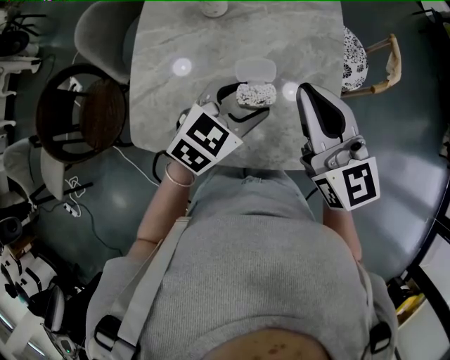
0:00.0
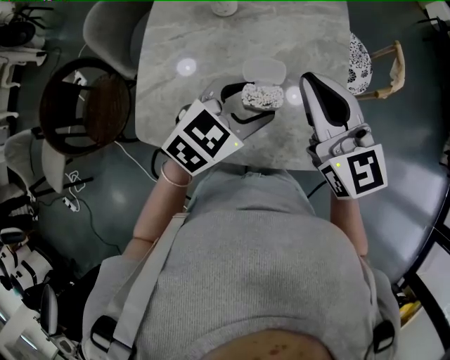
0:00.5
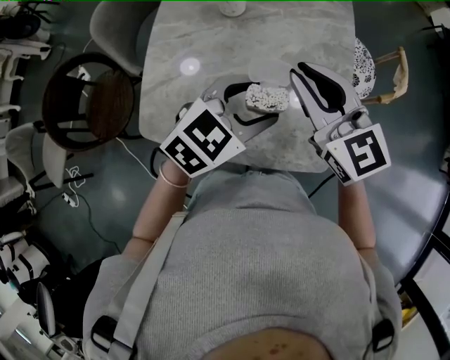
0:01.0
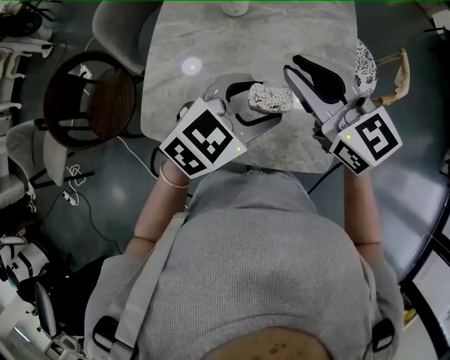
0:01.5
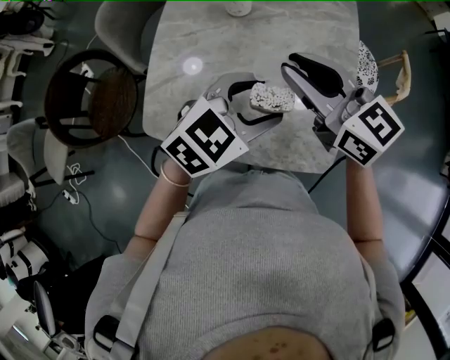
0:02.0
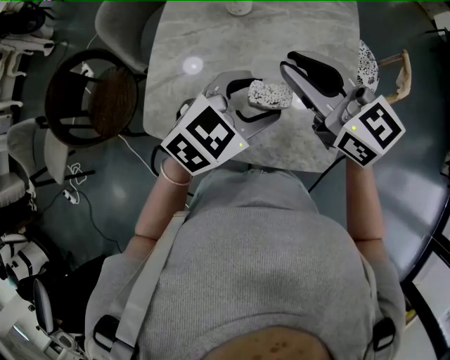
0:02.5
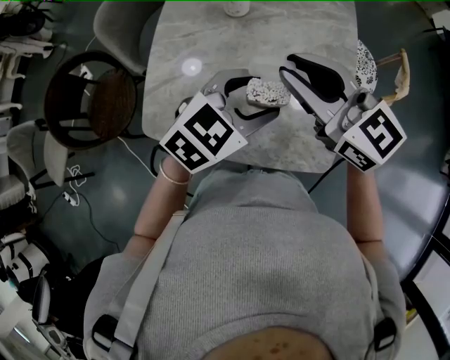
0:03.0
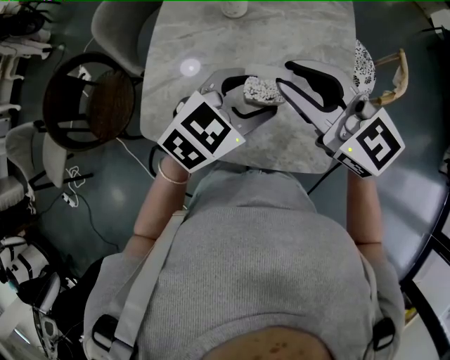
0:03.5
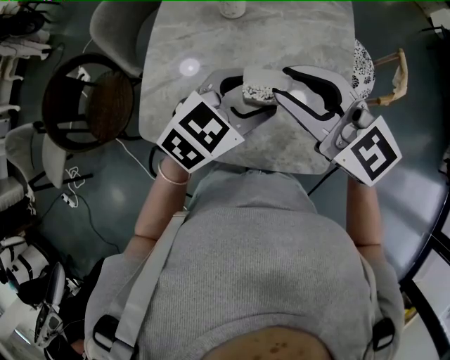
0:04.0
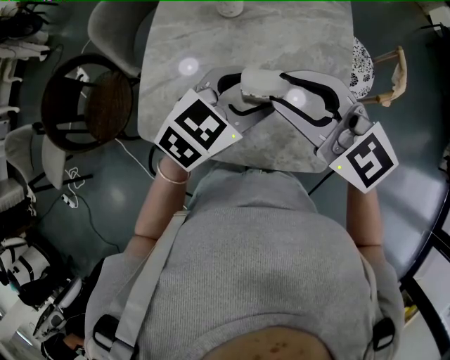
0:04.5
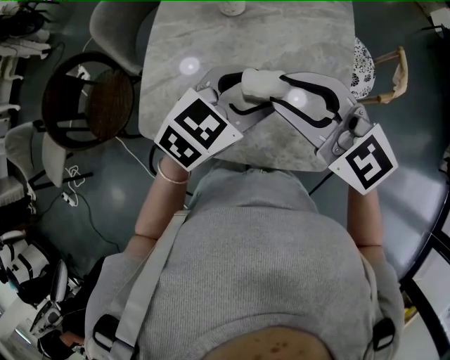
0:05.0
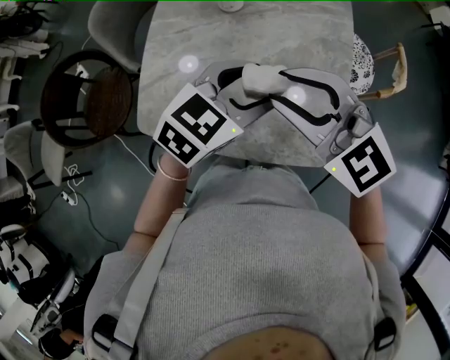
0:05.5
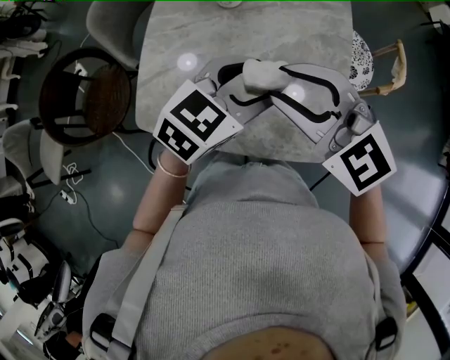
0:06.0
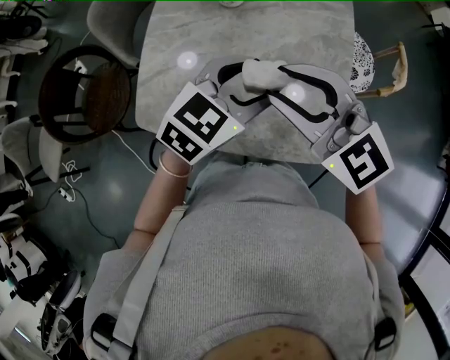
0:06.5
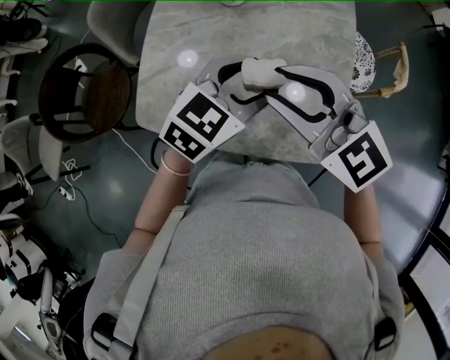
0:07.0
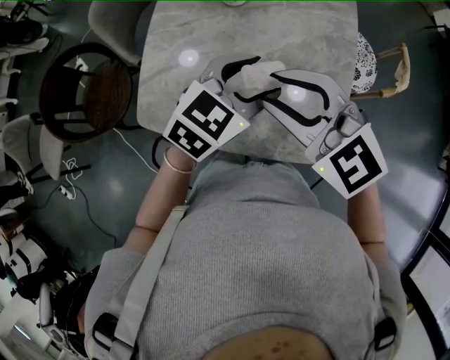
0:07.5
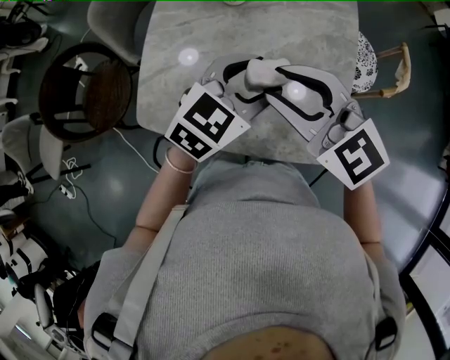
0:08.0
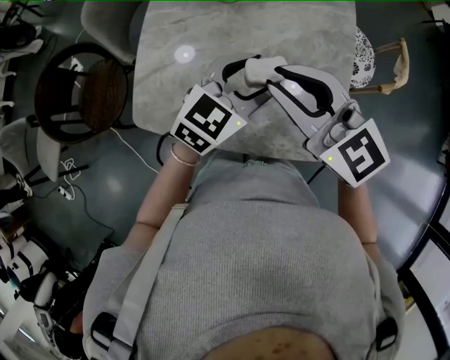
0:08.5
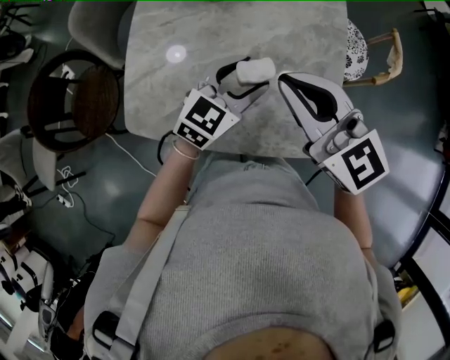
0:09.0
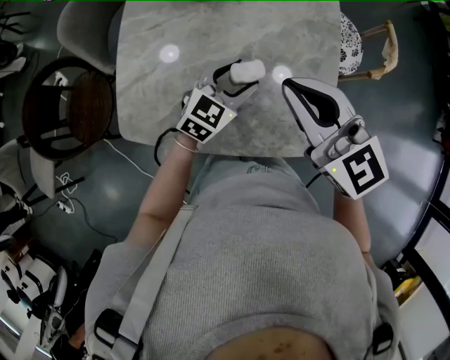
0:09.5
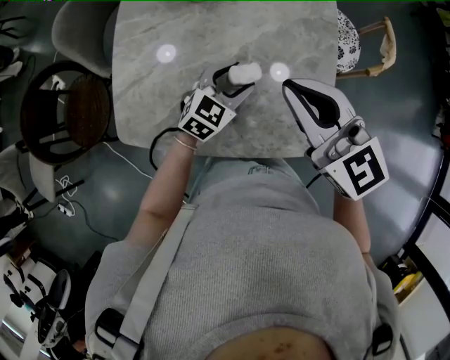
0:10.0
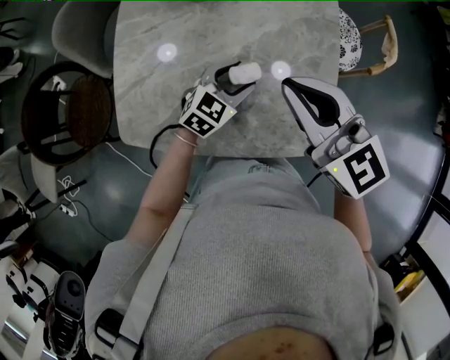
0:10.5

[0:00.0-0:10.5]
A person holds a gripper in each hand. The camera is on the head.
0:00.0 to 0:02.0: The left gripper goes about 5 cm upward. Meanwhile the right gripper shifts about 5 cm to the left, and swivels about 30 degrees.
0:02.0 to 0:04.0: The right gripper shifts about 5 cm backward.
0:04.0 to 0:08.5: The grippers stay close to where they were, moving slightly.
0:08.5 to 0:10.5: The left gripper shifts approximately 15 cm downward. The right gripper is displaced to the right by some 5 cm.

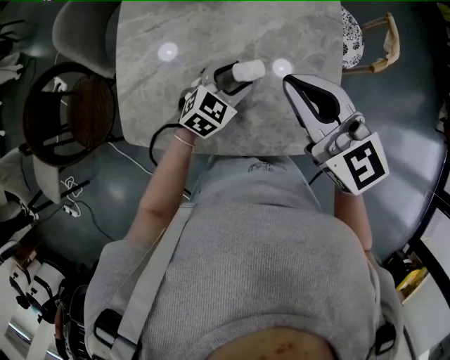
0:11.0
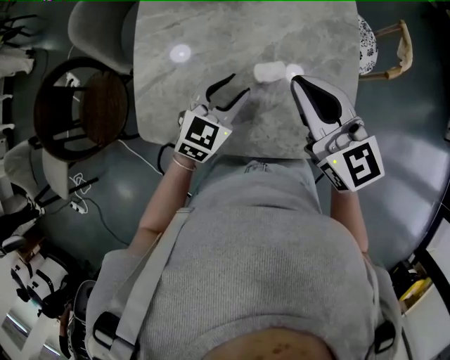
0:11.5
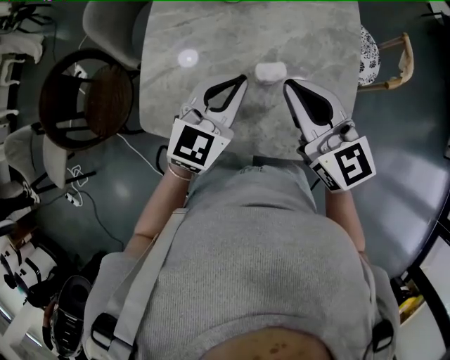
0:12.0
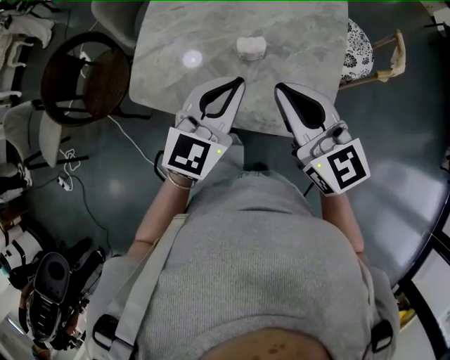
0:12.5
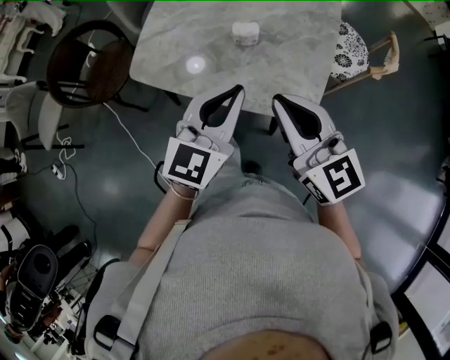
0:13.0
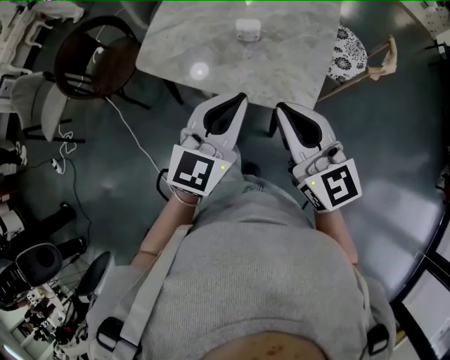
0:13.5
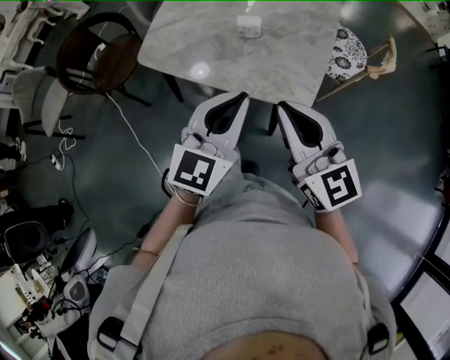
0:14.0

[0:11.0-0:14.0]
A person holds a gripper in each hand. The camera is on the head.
0:11.0 to 0:12.5: The right gripper shifts about 10 cm backward, while the left gripper heads upward and backward, covering approximately 20 cm, changes its angle by roughly 30 degrees, and closes.
0:12.5 to 0:14.0: The grippers both shift backward by some 15 cm.

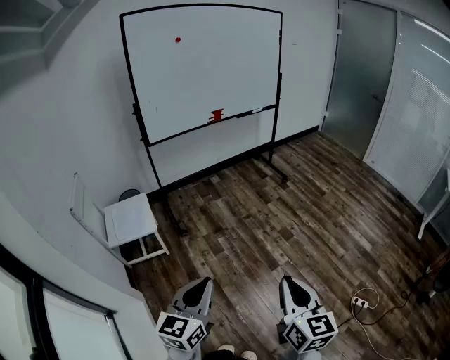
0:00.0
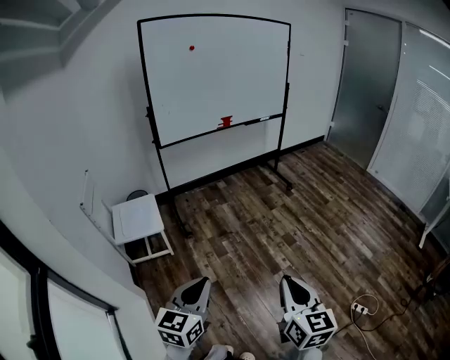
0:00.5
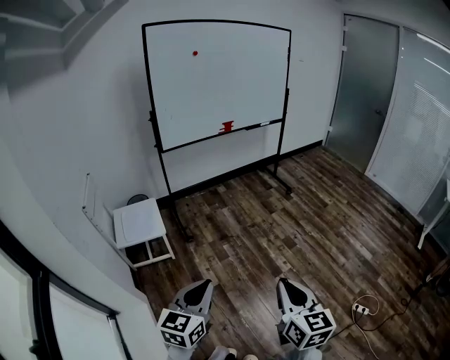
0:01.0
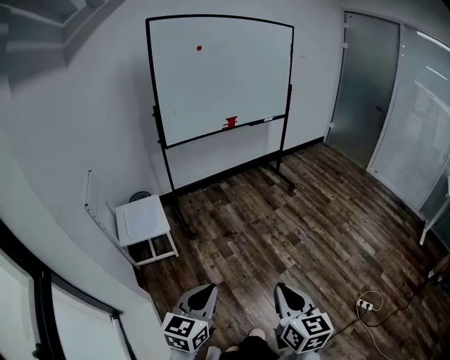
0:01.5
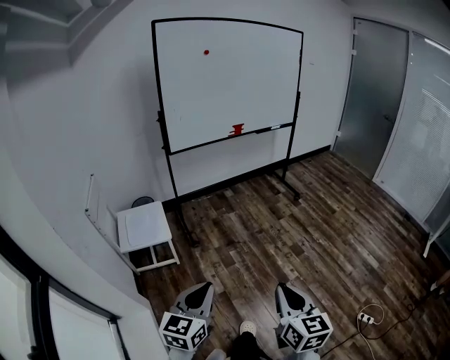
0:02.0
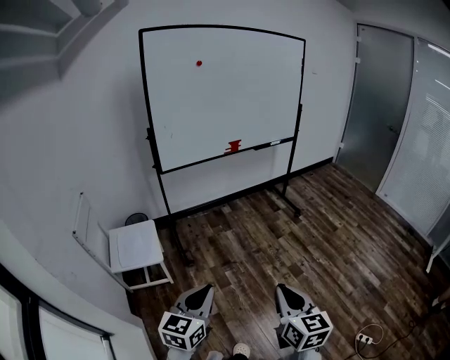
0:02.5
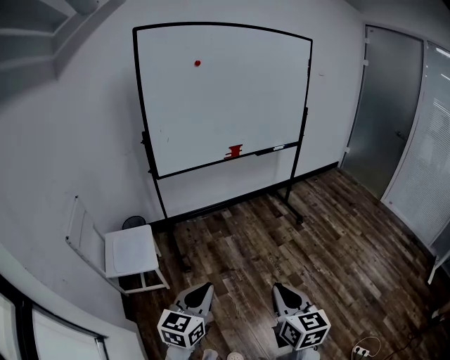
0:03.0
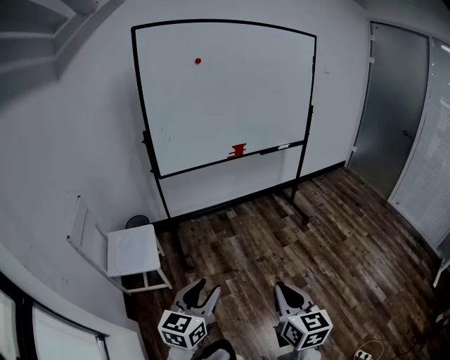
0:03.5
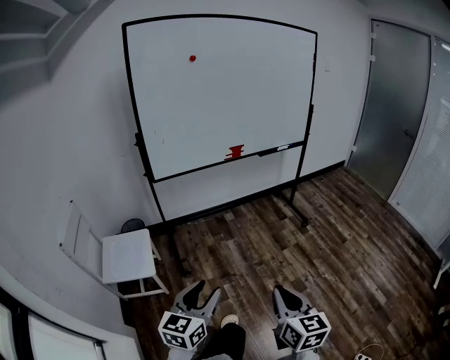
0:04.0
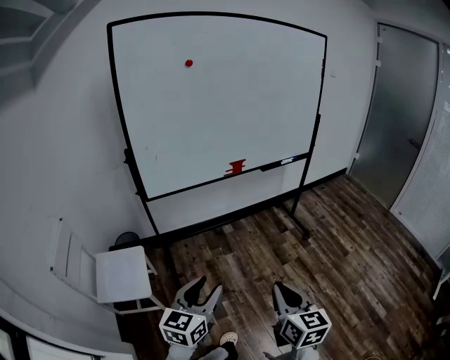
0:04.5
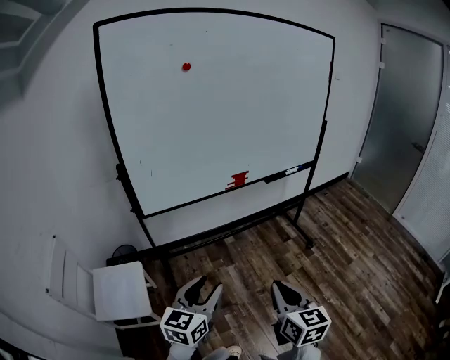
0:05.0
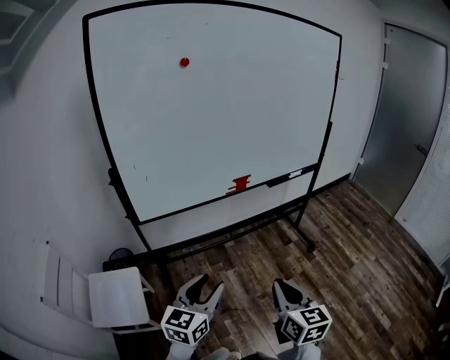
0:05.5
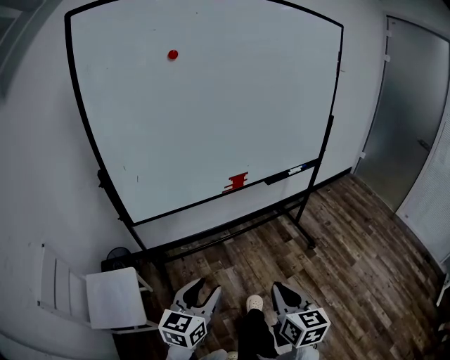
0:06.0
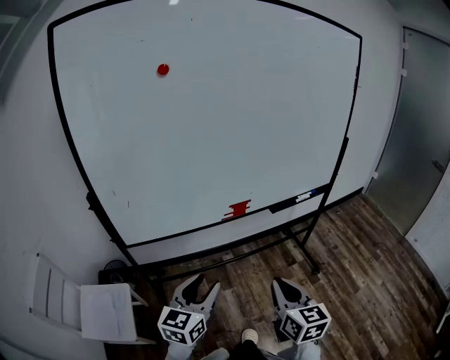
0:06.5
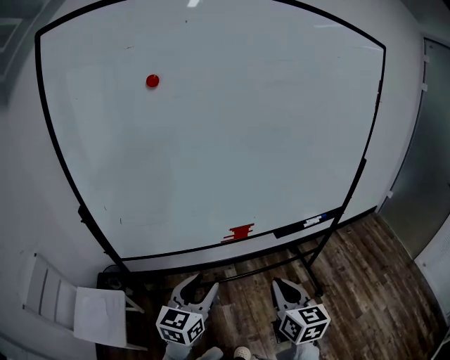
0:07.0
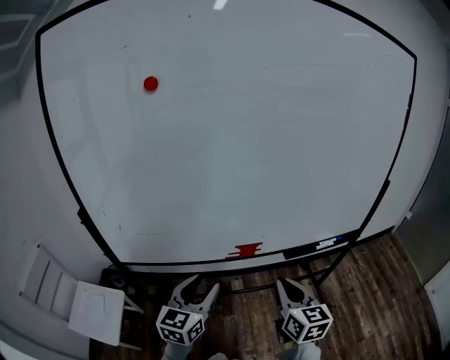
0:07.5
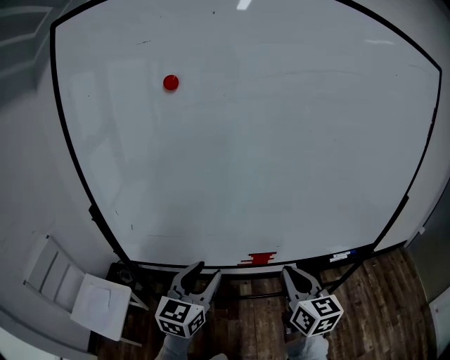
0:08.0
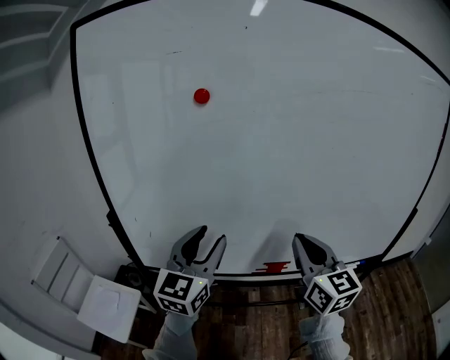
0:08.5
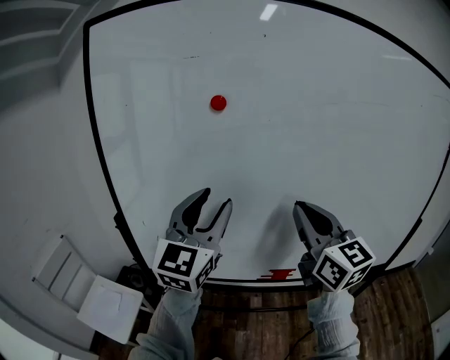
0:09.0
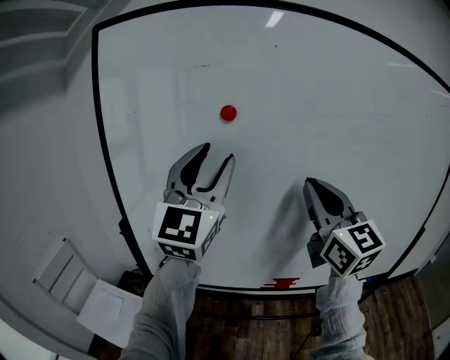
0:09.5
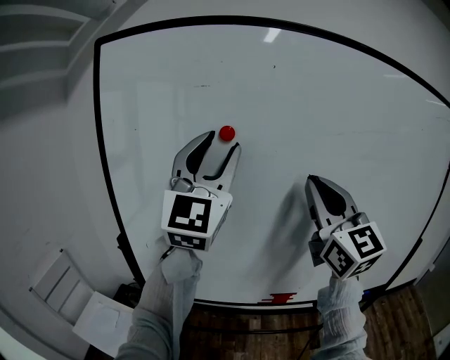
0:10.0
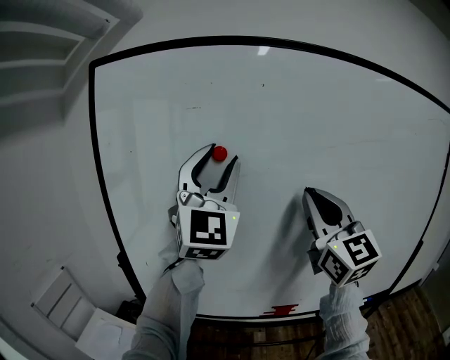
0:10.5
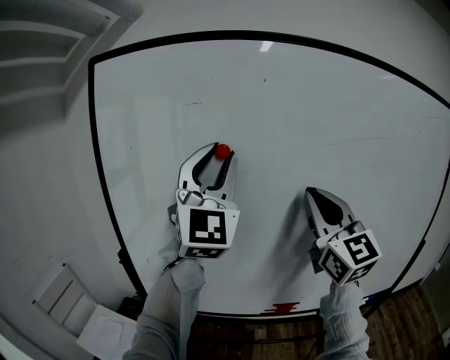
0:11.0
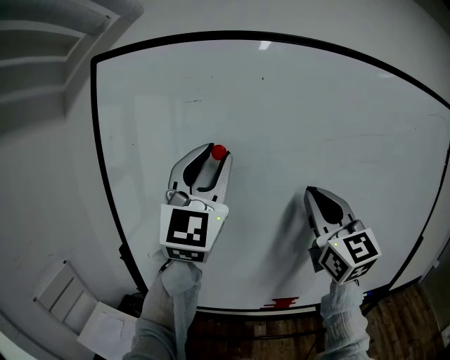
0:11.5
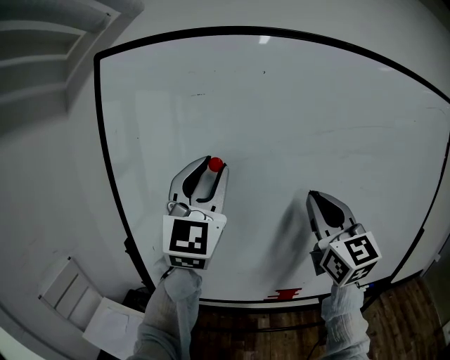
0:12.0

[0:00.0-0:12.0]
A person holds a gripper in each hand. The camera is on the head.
0:00.0 to 0:02.0: The grippers both shift to the left by approximately 10 cm.
0:02.0 to 0:04.0: The two grippers go approximately 30 cm forward. The left gripper opens up.
0:04.0 to 0:06.0: Both grippers move forward, roughly 35 cm.
0:06.0 to 0:08.0: The grippers both shift forward by roughly 40 cm. The left gripper changes its angle by about 30 degrees. Meanwhile the right gripper swivels some 30 degrees.
0:08.0 to 0:10.0: Both grippers travel together upward, about 35 cm. The right gripper changes its angle by about 40 degrees, while the left gripper tilts its fingers about 40 degrees upward.
0:10.0 to 0:12.0: The grippers move only a little.

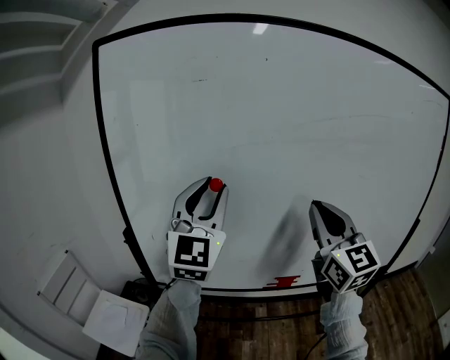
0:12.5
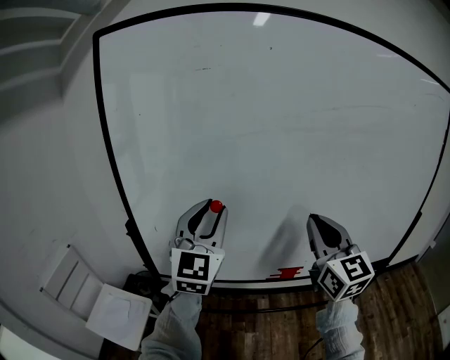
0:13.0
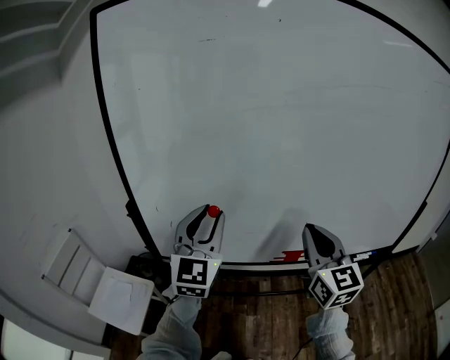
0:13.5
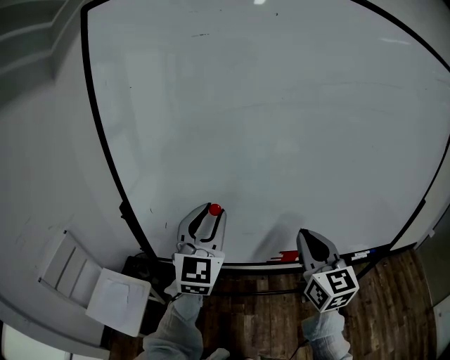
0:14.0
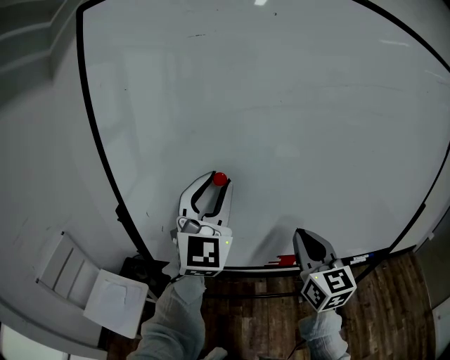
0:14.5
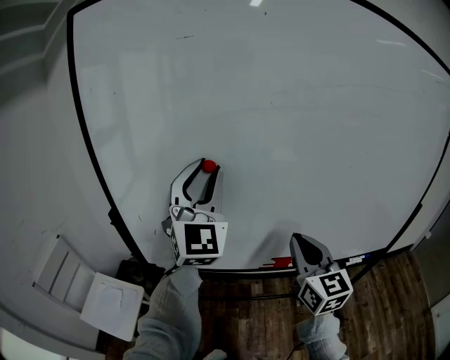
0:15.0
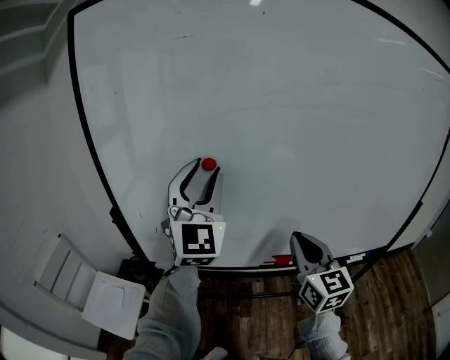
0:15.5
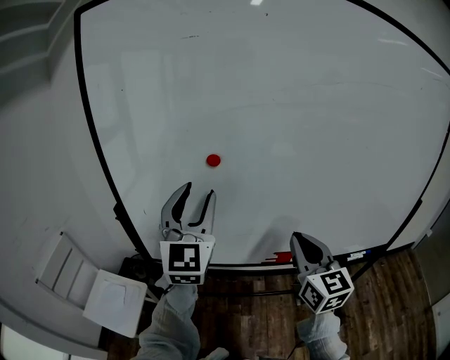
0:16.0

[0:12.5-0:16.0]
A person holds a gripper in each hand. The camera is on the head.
0:12.5 to 0:14.5: The right gripper shifts some 15 cm downward; the left gripper heads downward, covering roughly 5 cm.
0:14.5 to 0:16.0: The grippers move only a little.
